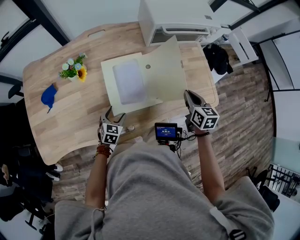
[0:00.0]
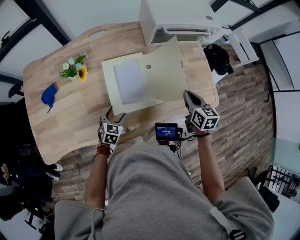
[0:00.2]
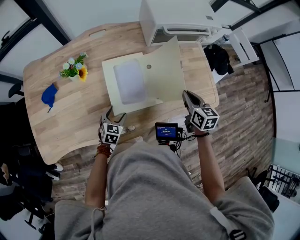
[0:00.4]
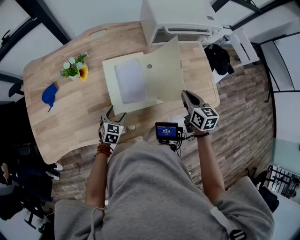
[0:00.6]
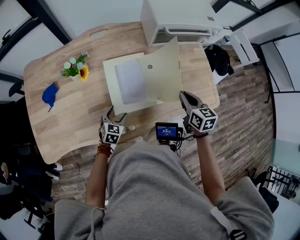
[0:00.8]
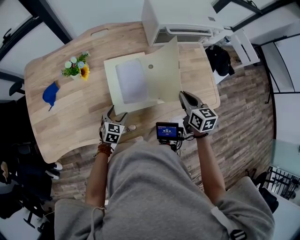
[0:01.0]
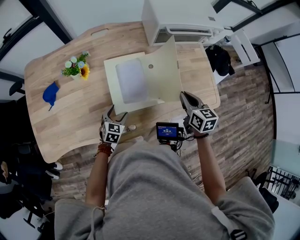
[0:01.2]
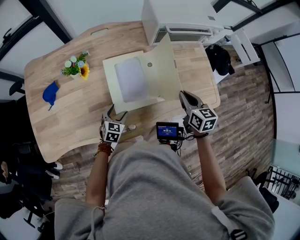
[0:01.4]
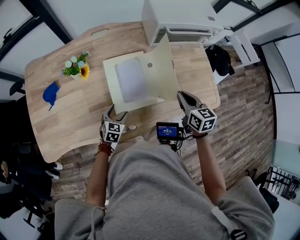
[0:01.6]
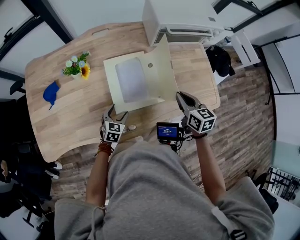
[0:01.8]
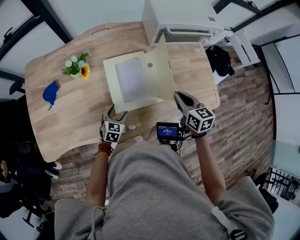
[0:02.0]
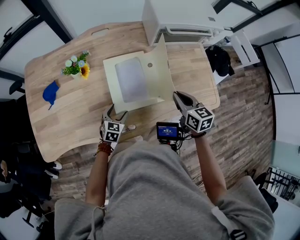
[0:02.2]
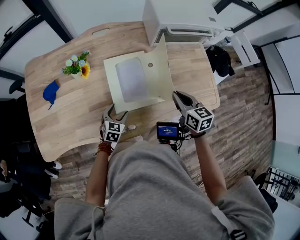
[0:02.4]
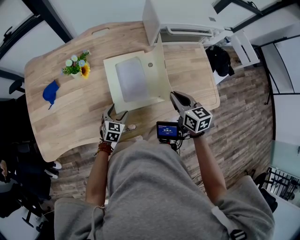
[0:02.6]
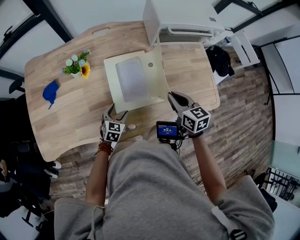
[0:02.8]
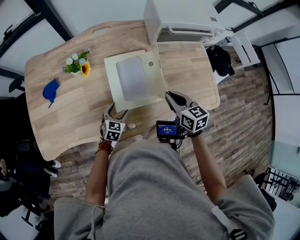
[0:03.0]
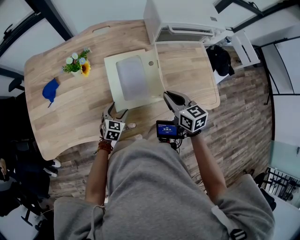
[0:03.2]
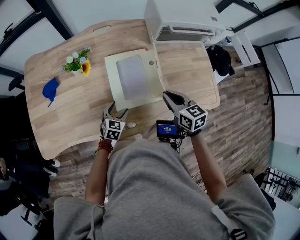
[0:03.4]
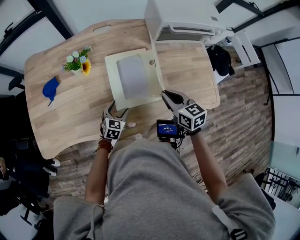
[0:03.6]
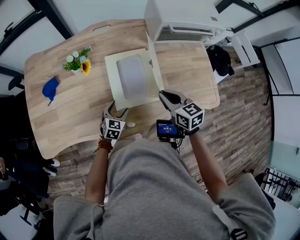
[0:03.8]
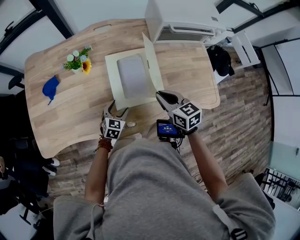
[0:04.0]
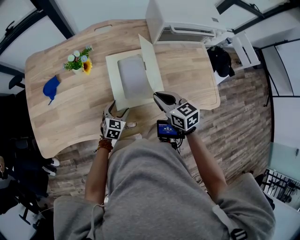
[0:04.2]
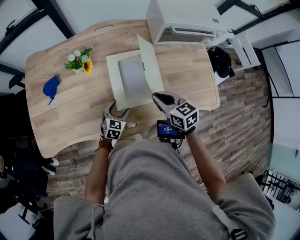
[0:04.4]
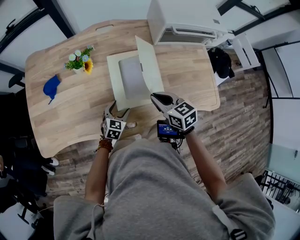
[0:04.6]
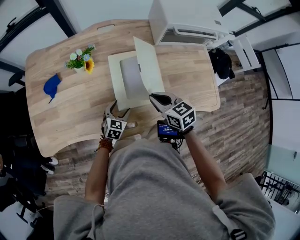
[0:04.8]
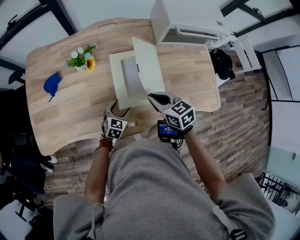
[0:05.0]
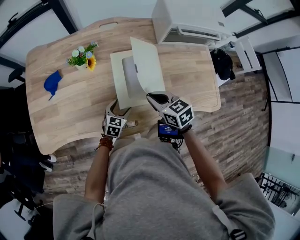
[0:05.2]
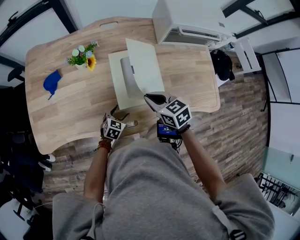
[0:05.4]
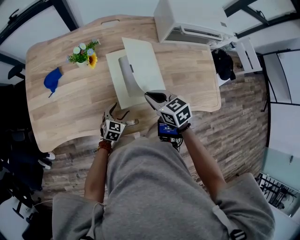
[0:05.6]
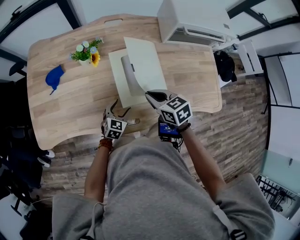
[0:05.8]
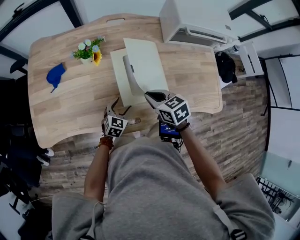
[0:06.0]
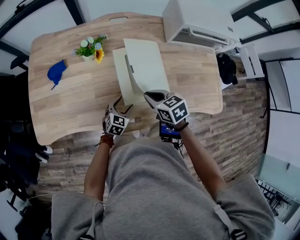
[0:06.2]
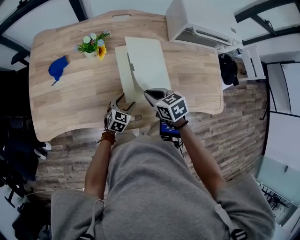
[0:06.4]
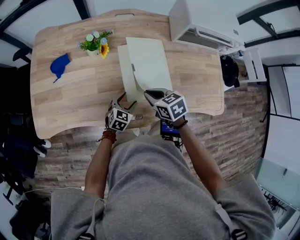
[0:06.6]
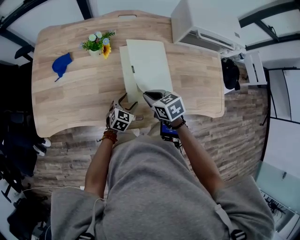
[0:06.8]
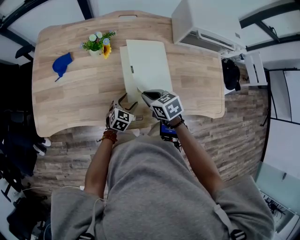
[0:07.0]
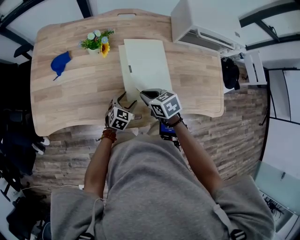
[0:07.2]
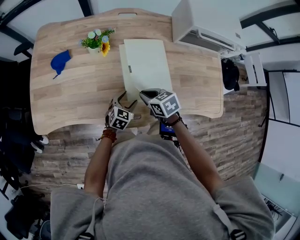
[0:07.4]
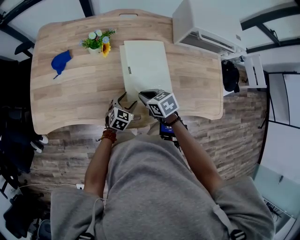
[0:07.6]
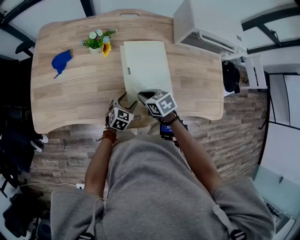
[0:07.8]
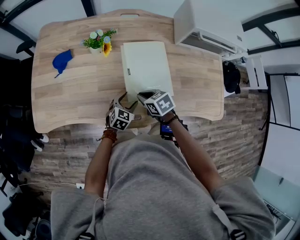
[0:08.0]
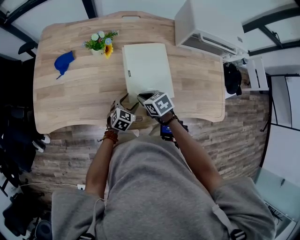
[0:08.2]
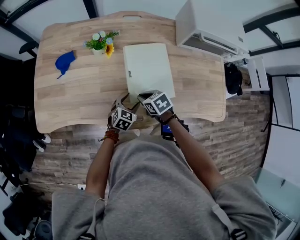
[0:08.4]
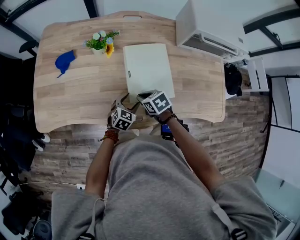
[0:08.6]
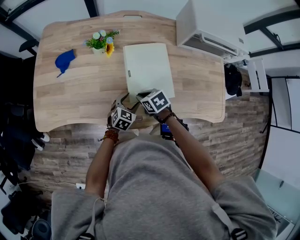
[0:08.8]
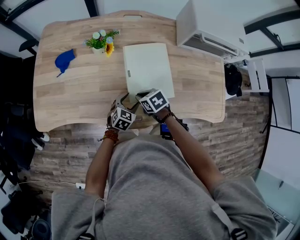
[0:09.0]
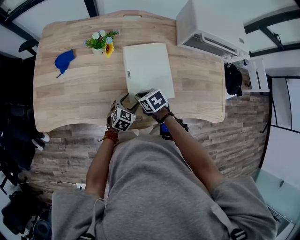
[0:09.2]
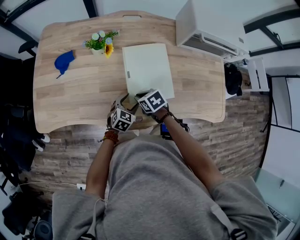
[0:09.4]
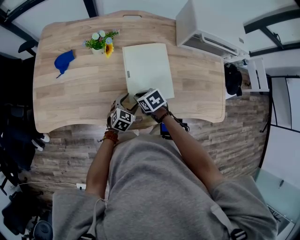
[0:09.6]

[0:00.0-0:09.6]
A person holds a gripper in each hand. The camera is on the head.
0:00.0 to 0:01.6: The right gripper moves to the left, about 5 cm.
0:01.6 to 0:03.2: The right gripper heads to the left, covering some 5 cm.
0:03.2 to 0:04.8: The right gripper shifts some 10 cm to the left.
0:04.8 to 0:06.4: The right gripper moves to the left, about 5 cm.
0:06.4 to 0:08.0: The right gripper is displaced downward by approximately 5 cm.
0:08.0 to 0:09.6: The grippers stay close to where they were, moving slightly.

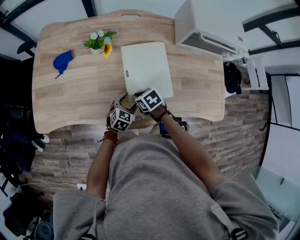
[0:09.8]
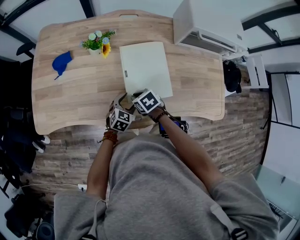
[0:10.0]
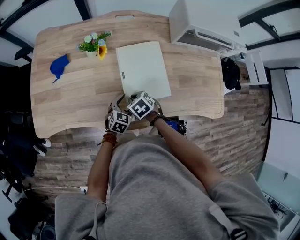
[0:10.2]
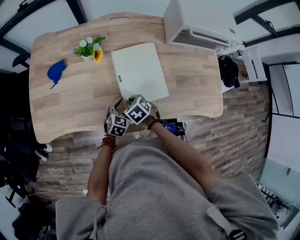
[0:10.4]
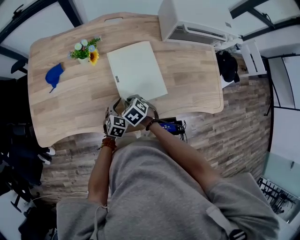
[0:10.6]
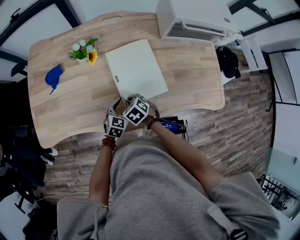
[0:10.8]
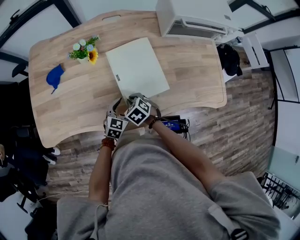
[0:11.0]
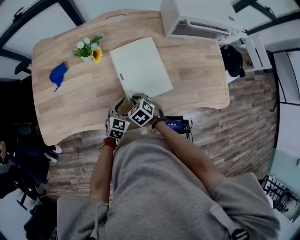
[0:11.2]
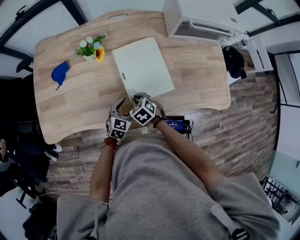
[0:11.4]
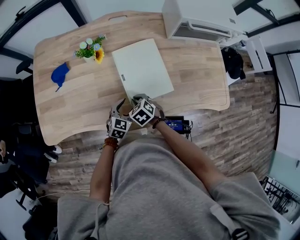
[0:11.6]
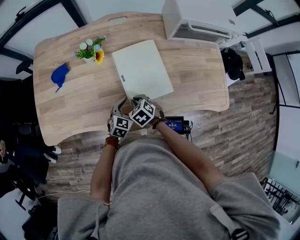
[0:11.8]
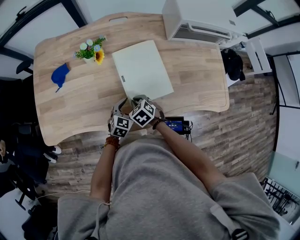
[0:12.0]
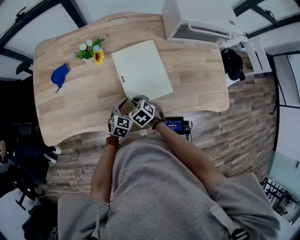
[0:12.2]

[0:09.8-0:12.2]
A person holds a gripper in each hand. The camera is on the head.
0:09.8 to 0:11.0: There are only small adjustments of the grippers.
0:11.0 to 0:12.2: Neither gripper changes place.

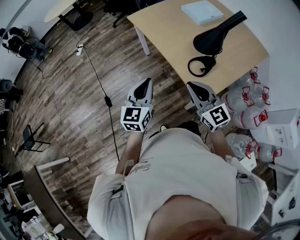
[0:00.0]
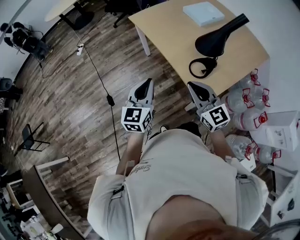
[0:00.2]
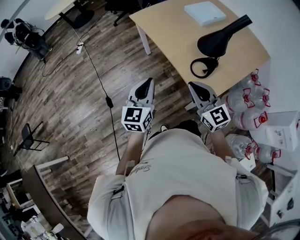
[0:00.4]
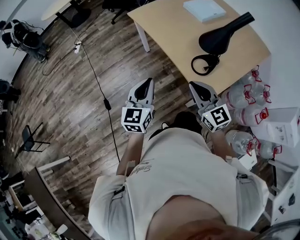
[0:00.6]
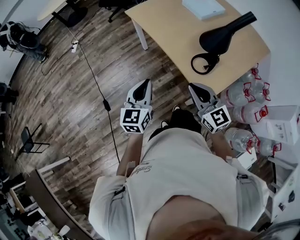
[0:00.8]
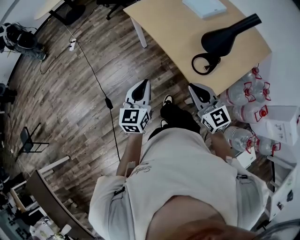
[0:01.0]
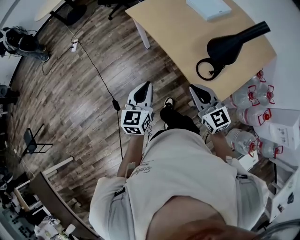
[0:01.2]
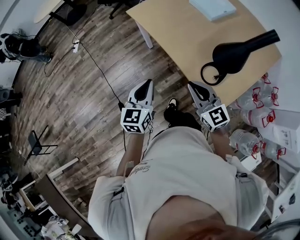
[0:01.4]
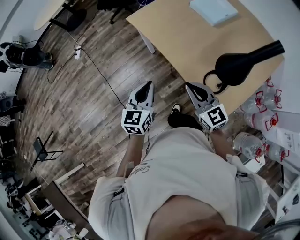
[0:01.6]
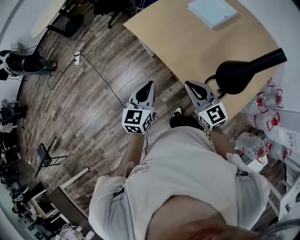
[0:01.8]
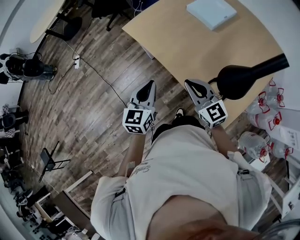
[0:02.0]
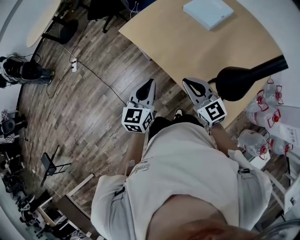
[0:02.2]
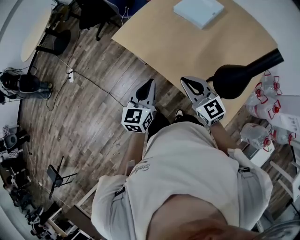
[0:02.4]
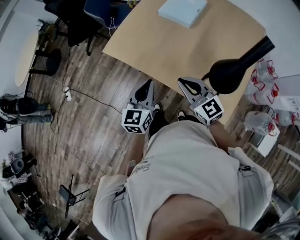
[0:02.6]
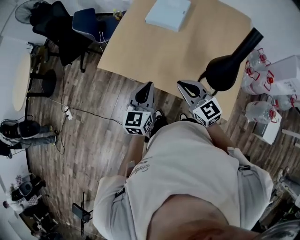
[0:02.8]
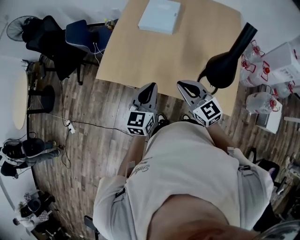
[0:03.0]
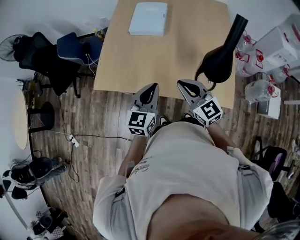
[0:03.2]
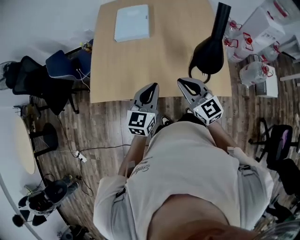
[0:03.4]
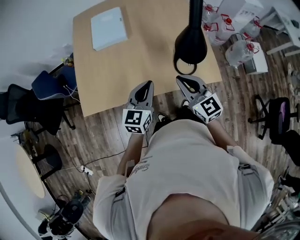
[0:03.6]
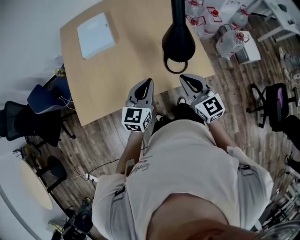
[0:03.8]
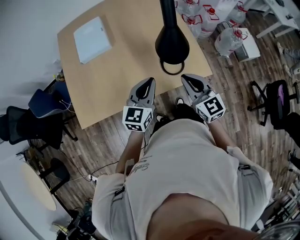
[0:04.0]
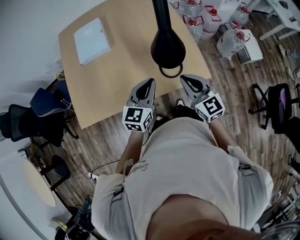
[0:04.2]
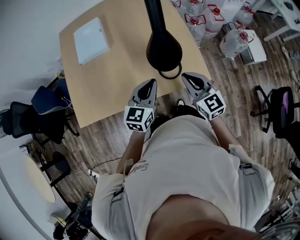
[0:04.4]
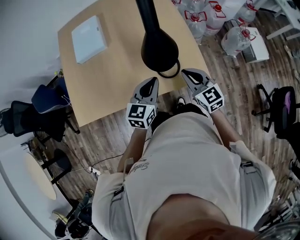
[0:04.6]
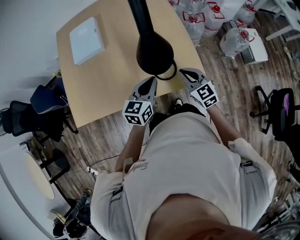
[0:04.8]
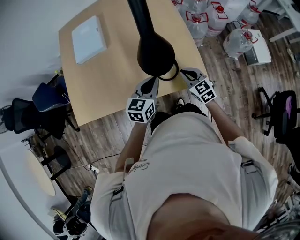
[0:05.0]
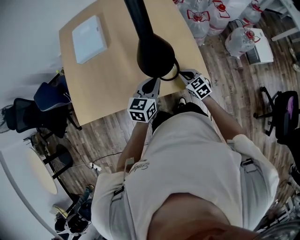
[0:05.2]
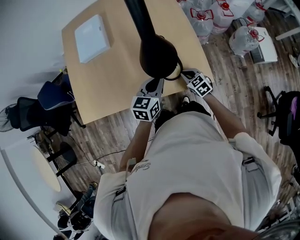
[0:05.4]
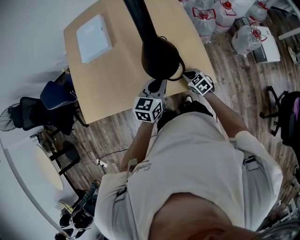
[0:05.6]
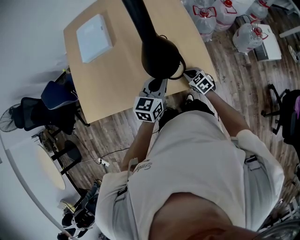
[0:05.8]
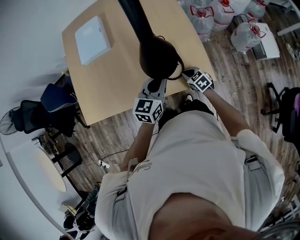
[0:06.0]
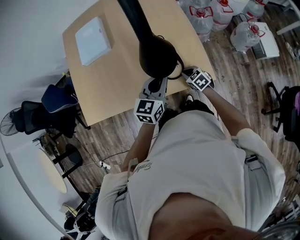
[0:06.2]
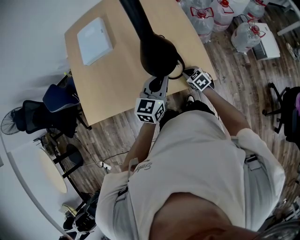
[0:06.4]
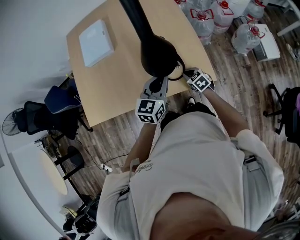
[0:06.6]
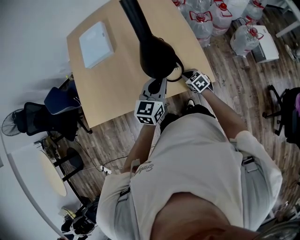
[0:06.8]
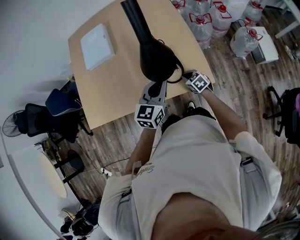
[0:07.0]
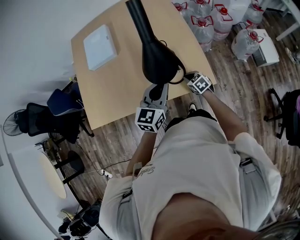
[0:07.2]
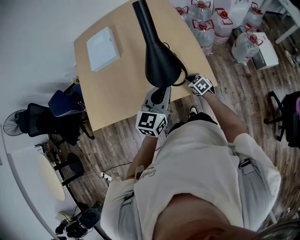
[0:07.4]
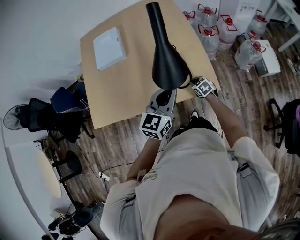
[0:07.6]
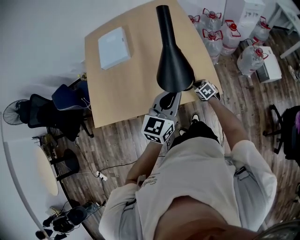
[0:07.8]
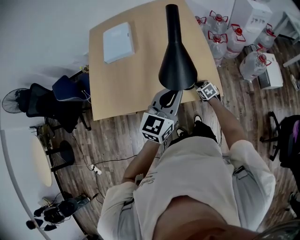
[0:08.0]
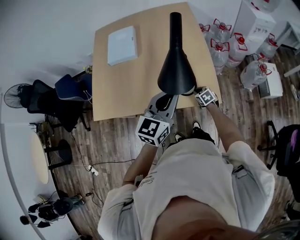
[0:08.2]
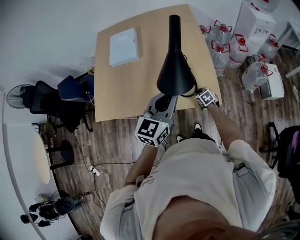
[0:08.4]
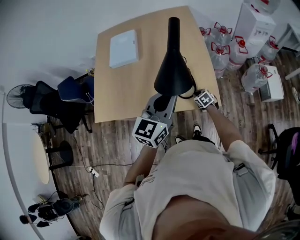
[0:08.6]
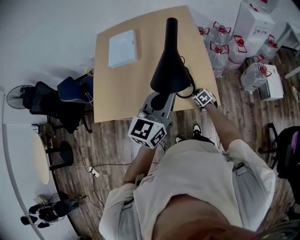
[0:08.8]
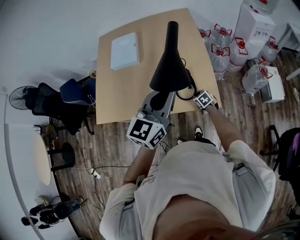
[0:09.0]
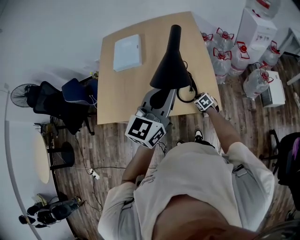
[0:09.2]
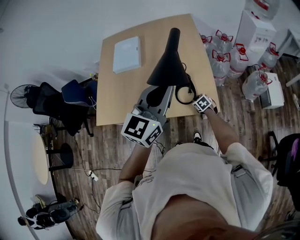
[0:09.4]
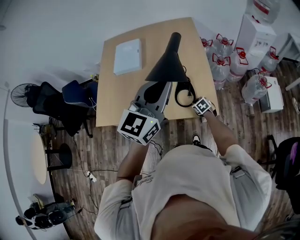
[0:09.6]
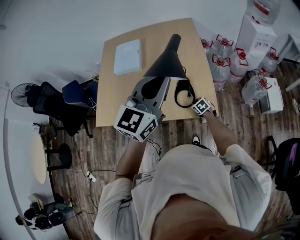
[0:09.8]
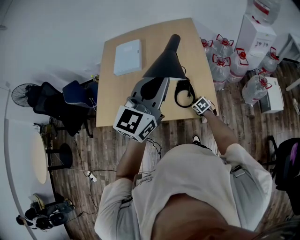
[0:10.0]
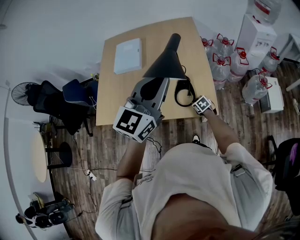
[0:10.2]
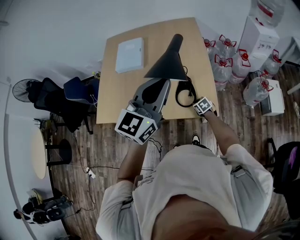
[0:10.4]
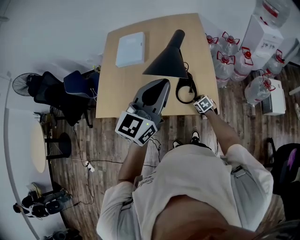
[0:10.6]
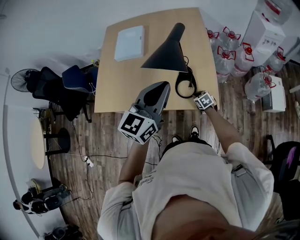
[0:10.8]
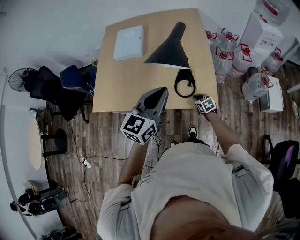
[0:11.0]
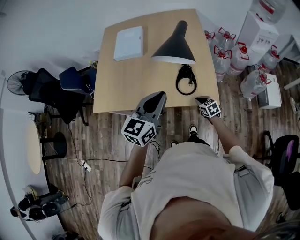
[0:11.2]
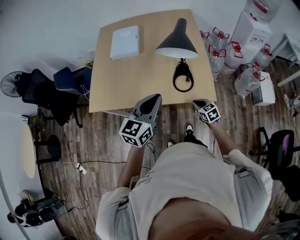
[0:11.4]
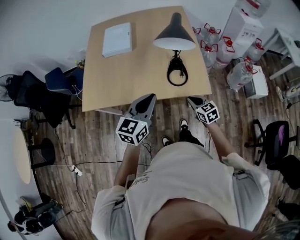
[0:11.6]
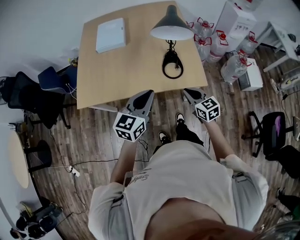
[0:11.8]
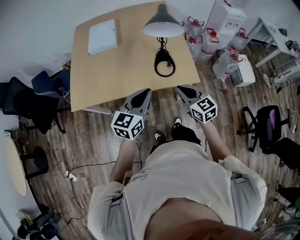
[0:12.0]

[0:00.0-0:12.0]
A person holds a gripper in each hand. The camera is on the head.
0:00.0 to 0:01.6: Both grippers travel together forward, some 20 cm.
0:01.6 to 0:03.0: The right gripper changes place by roughly 15 cm, and turns by approximately 30 degrees, while the left gripper ends up roughly 20 cm from where it was, and rotates roughly 40 degrees.
0:03.0 to 0:04.4: The right gripper changes place by roughly 20 cm, and swivels approximately 40 degrees. Meanwhile the left gripper shifts by about 20 cm, and rotates approximately 40 degrees.
0:04.4 to 0:06.0: The left gripper is displaced to the right and downward by about 10 cm. Meanwhile the right gripper is displaced downward by about 25 cm, and tilts its fingers about 30 degrees downward.
0:06.0 to 0:07.6: The left gripper moves upward and backward, roughly 10 cm.
0:07.6 to 0:09.0: The left gripper heads upward, covering approximately 15 cm.
0:09.0 to 0:10.4: The left gripper heads upward, covering some 5 cm.
0:10.4 to 0:12.0: The left gripper moves downward, backward and to the left, about 25 cm. Meanwhile the right gripper travels upward and backward by roughly 30 cm, and tips its fingers upward by some 30 degrees.
